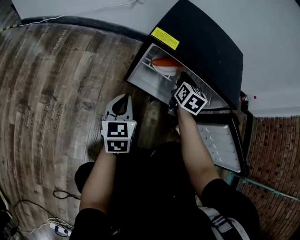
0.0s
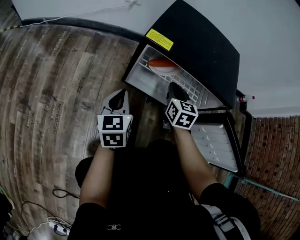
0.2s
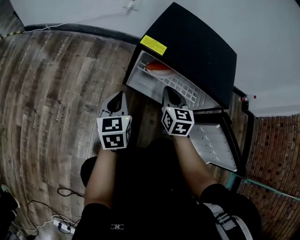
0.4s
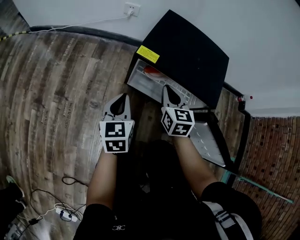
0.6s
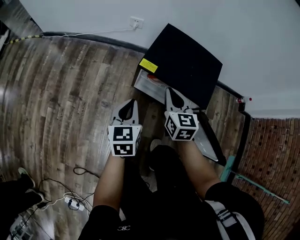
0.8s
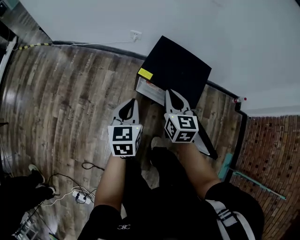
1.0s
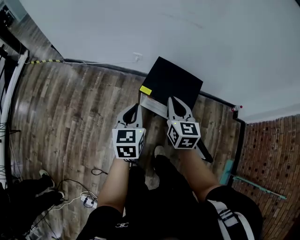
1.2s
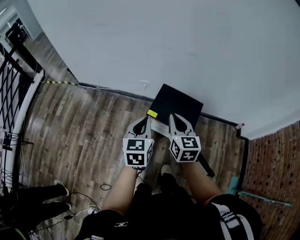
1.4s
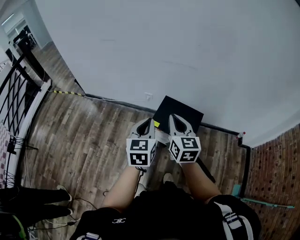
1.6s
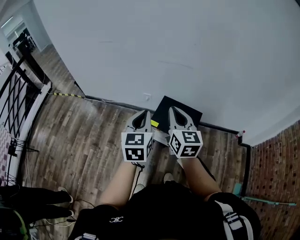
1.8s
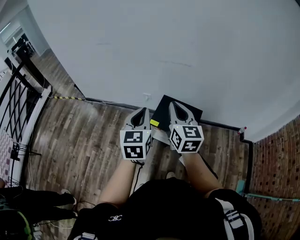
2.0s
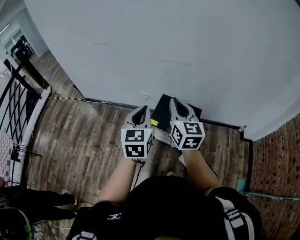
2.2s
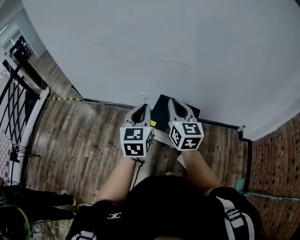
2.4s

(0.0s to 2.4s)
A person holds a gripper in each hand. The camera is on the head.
0.0s - 1.2s: The left gripper is displaced upward by roughly 60 cm.
1.2s - 2.4s: The left gripper moves upward, roughly 20 cm.

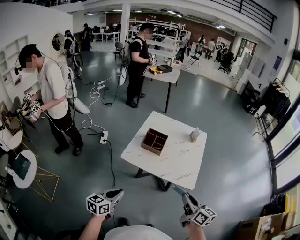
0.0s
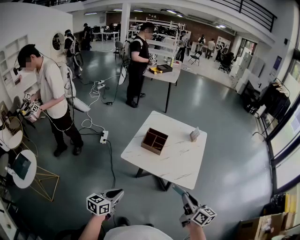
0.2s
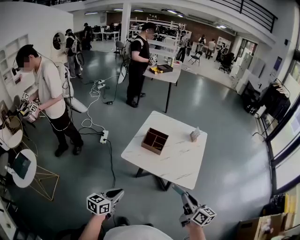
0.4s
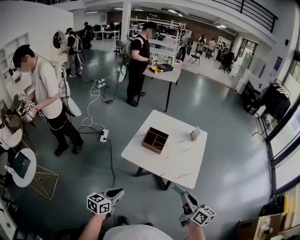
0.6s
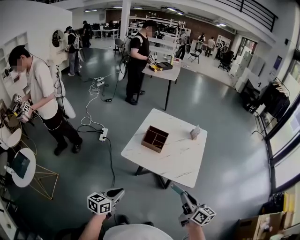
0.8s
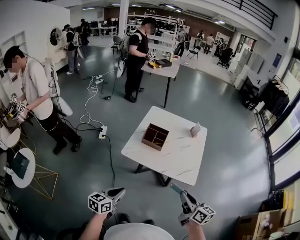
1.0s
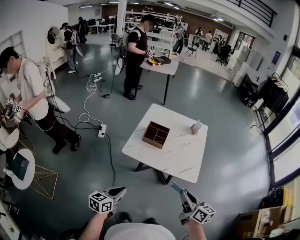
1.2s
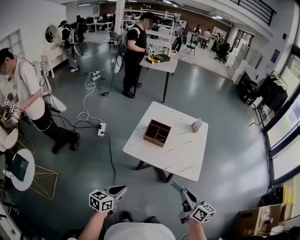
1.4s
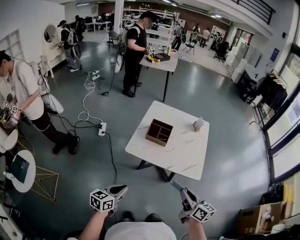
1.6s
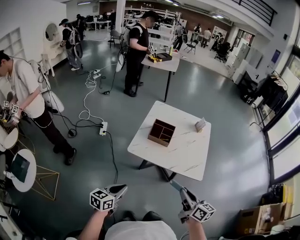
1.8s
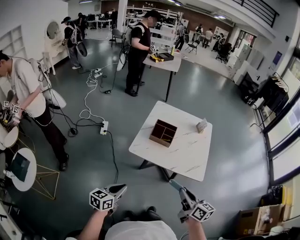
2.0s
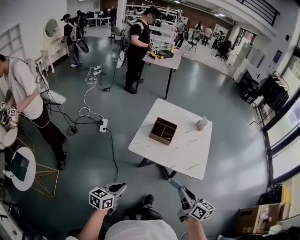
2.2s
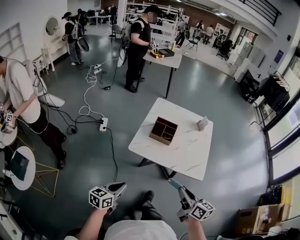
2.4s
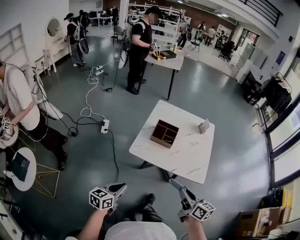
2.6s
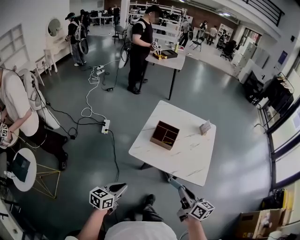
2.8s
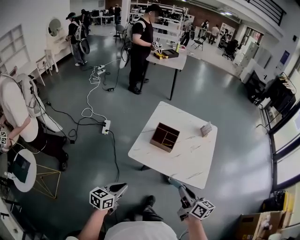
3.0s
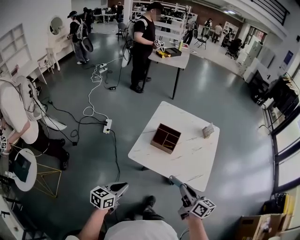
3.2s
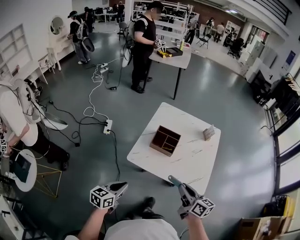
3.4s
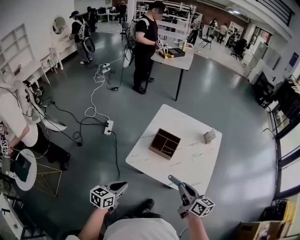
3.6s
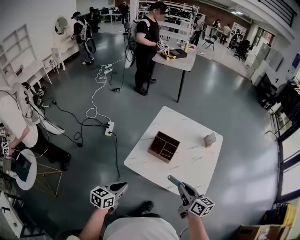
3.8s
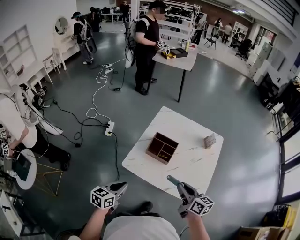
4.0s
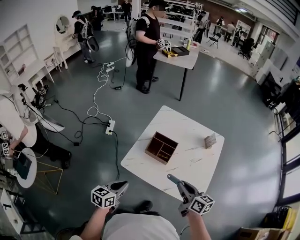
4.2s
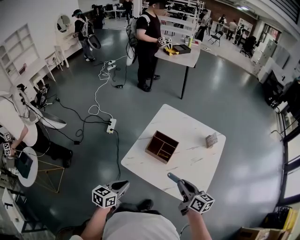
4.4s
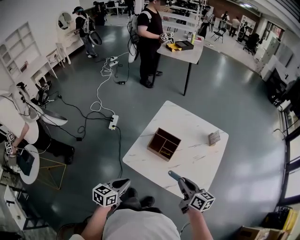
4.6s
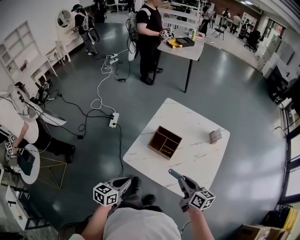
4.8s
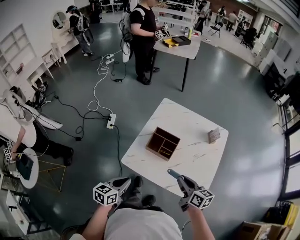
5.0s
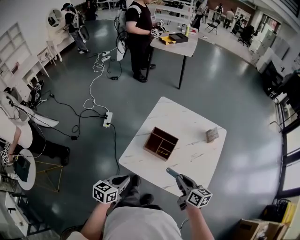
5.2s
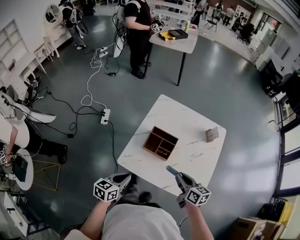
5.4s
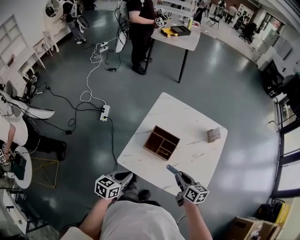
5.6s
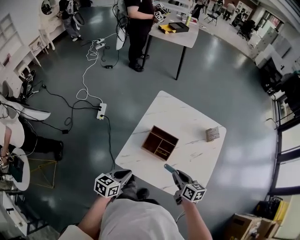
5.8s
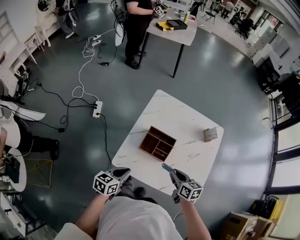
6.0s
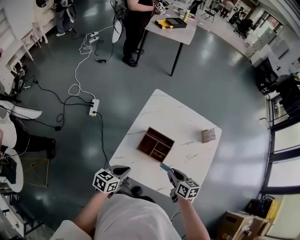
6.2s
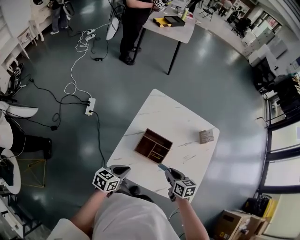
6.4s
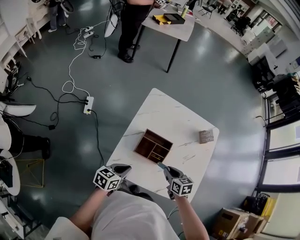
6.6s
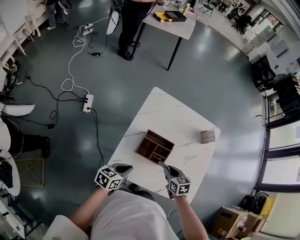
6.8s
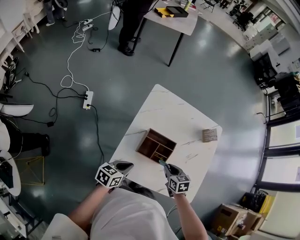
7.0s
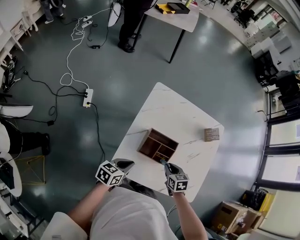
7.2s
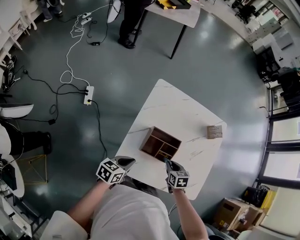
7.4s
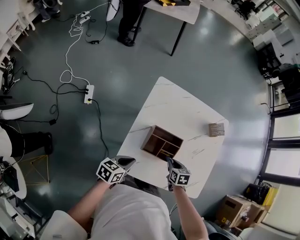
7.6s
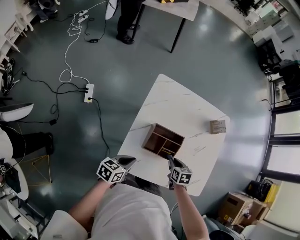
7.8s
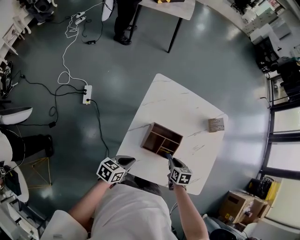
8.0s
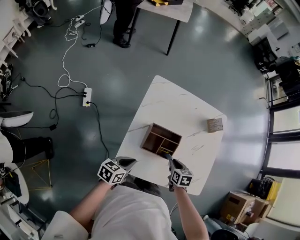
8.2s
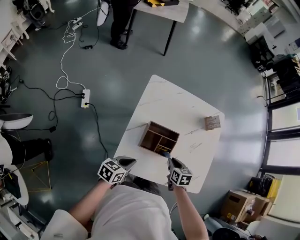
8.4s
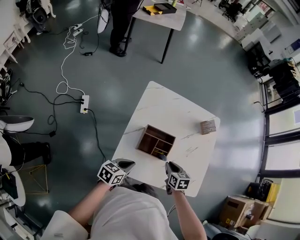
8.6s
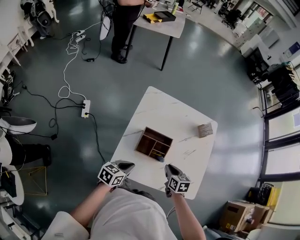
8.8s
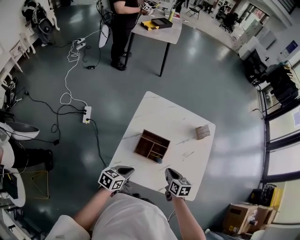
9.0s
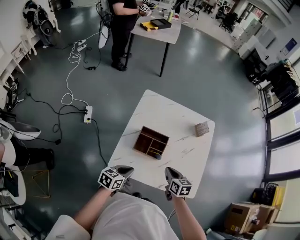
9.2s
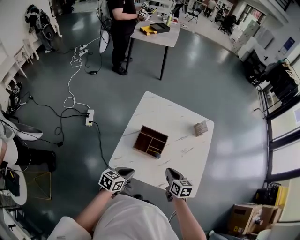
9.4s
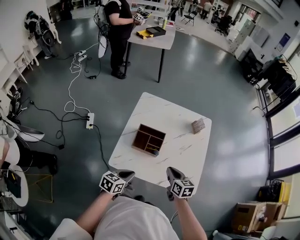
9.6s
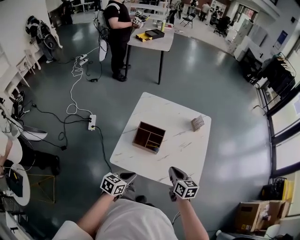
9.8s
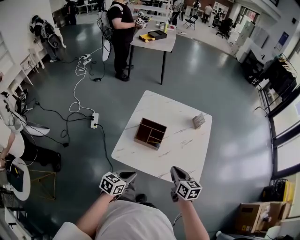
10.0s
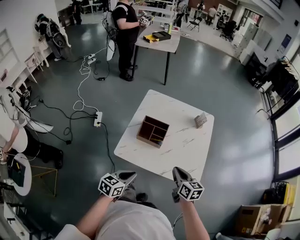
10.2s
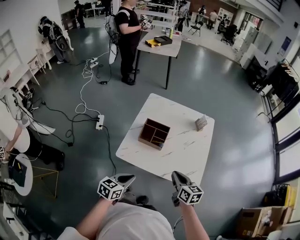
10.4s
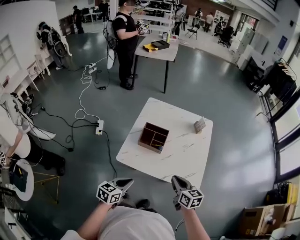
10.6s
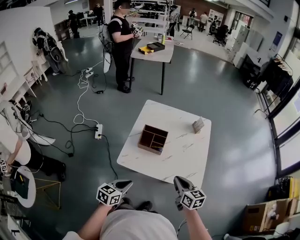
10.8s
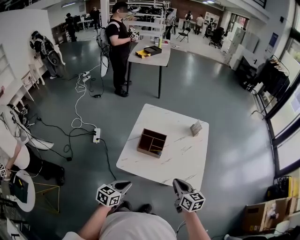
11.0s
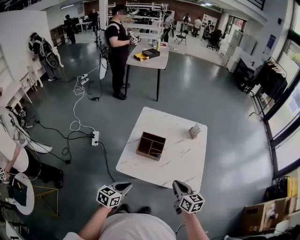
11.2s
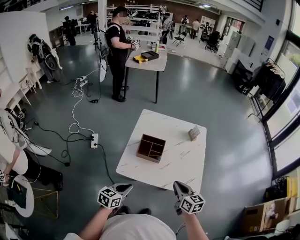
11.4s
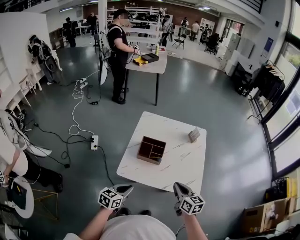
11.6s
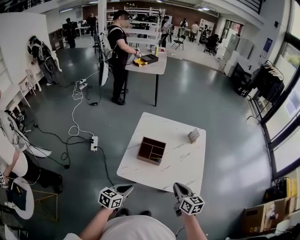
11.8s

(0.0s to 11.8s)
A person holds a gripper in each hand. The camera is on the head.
0.0s - 1.4s: The right gripper shifts approximately 5 cm to the left.
1.4s - 3.0s: The right gripper is displaced forward and to the left by some 10 cm, while the left gripper shifts approximately 10 cm forward.
3.0s - 4.4s: The left gripper is displaced forward and to the right by some 15 cm. The right gripper goes about 20 cm forward.
4.4s - 6.0s: The two grippers go approximately 15 cm forward and downward.
6.0s - 7.4s: The right gripper heads downward and forward, covering approximately 15 cm, and swivels roughly 30 degrees. Meanwhile the left gripper heads forward and downward, covering about 10 cm.
7.4s - 8.8s: The right gripper goes roughly 5 cm upward; the left gripper moves approximately 5 cm.
8.8s - 10.4s: The left gripper is displaced backward, to the right and upward by about 25 cm. The right gripper shifts roughly 25 cm backward, upward and to the right, and turns by some 20 degrees.
10.4s - 11.8s: The left gripper ends up some 5 cm from where it was.

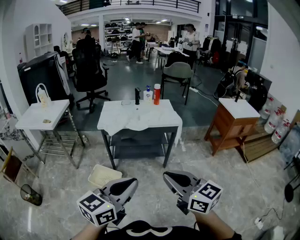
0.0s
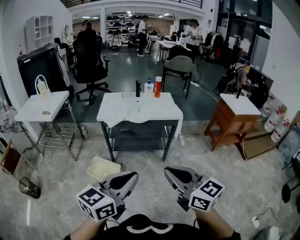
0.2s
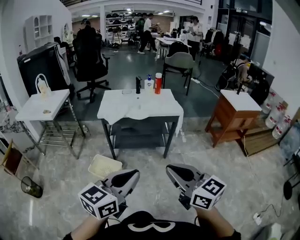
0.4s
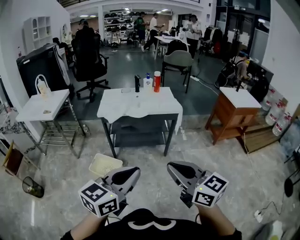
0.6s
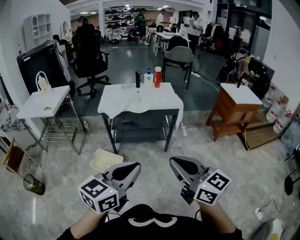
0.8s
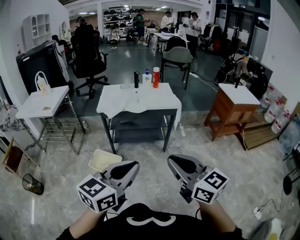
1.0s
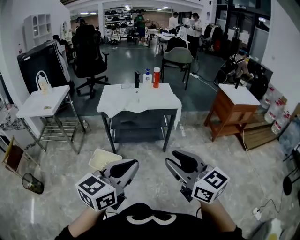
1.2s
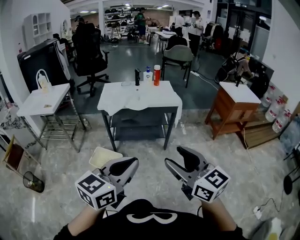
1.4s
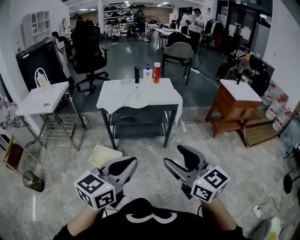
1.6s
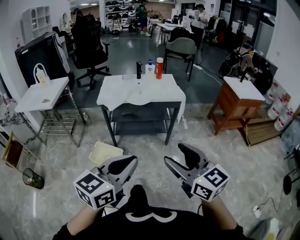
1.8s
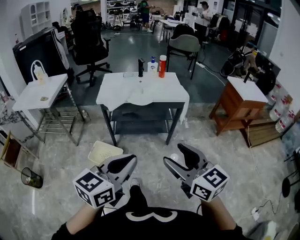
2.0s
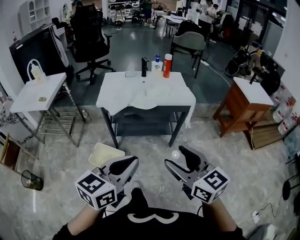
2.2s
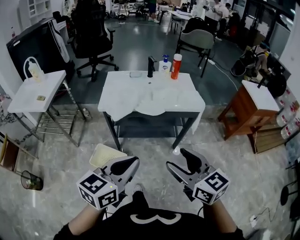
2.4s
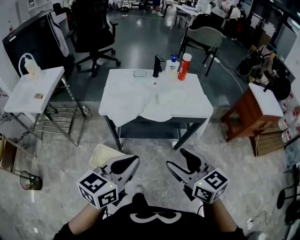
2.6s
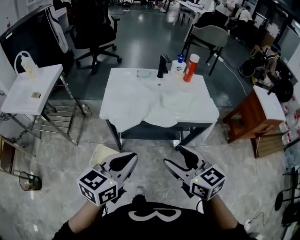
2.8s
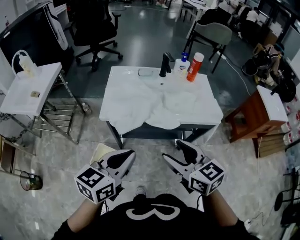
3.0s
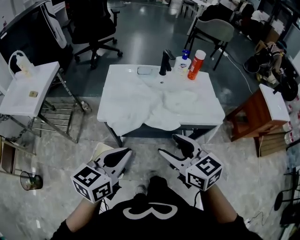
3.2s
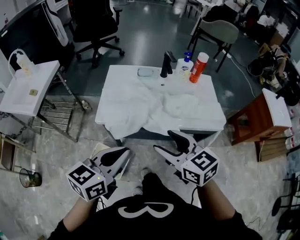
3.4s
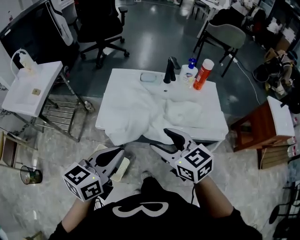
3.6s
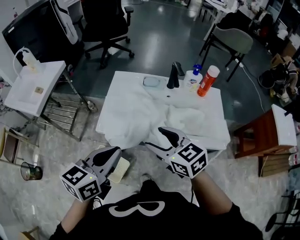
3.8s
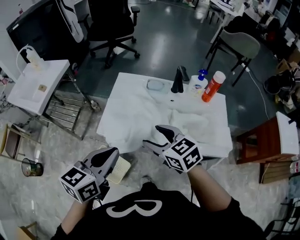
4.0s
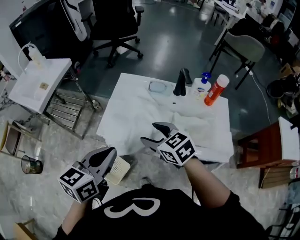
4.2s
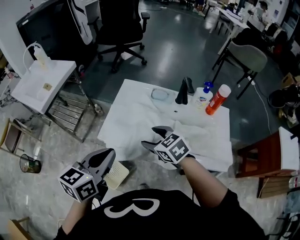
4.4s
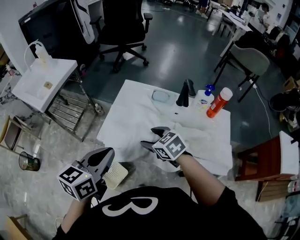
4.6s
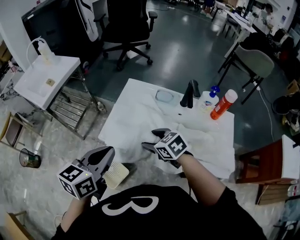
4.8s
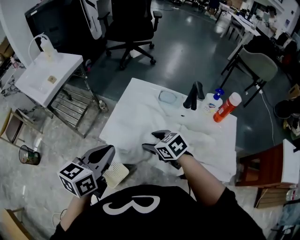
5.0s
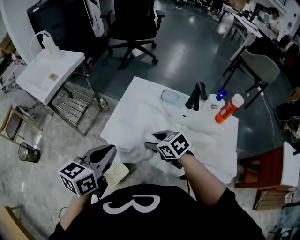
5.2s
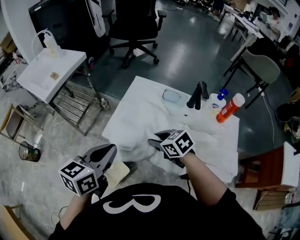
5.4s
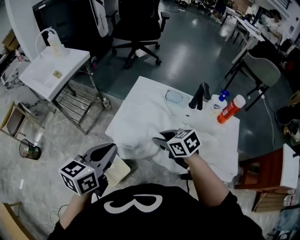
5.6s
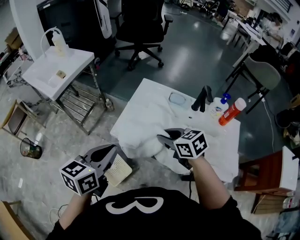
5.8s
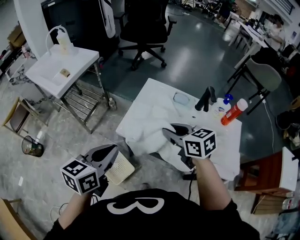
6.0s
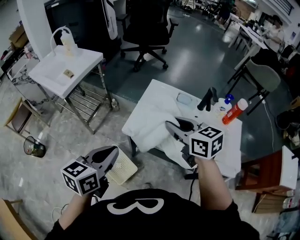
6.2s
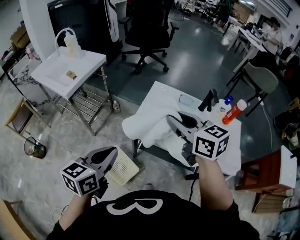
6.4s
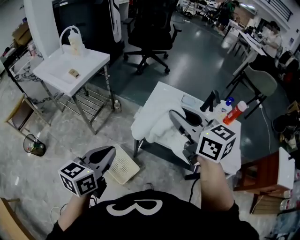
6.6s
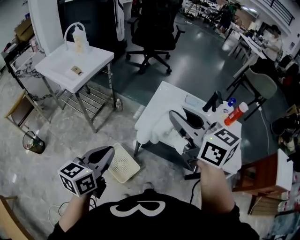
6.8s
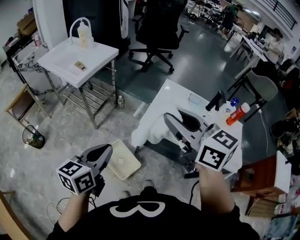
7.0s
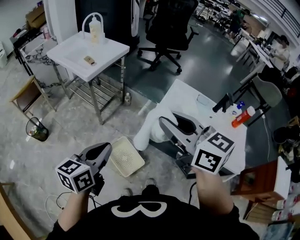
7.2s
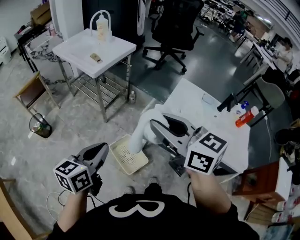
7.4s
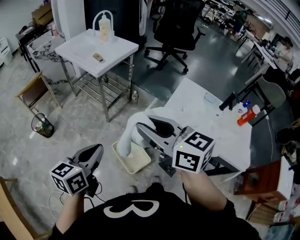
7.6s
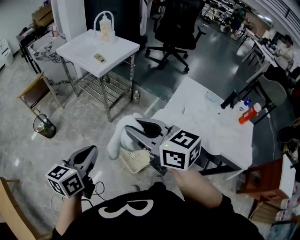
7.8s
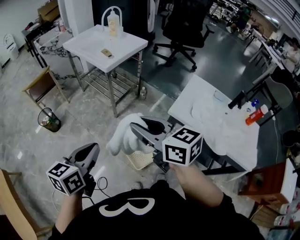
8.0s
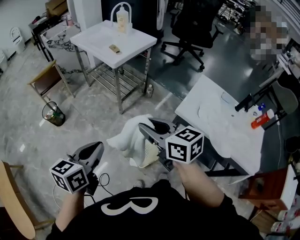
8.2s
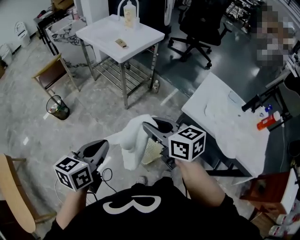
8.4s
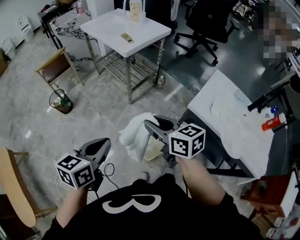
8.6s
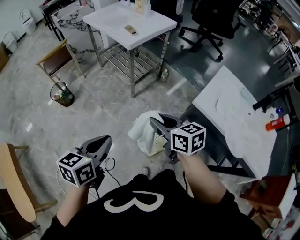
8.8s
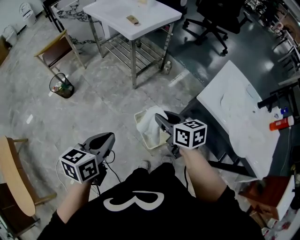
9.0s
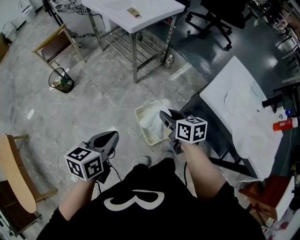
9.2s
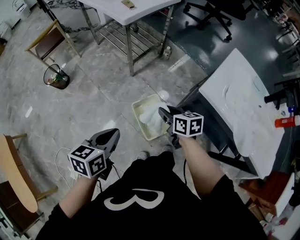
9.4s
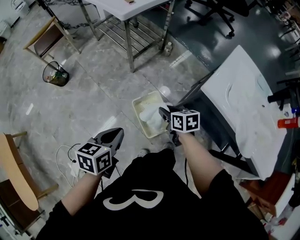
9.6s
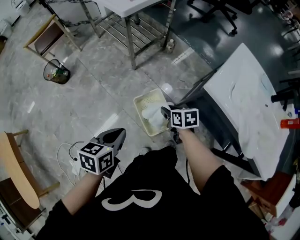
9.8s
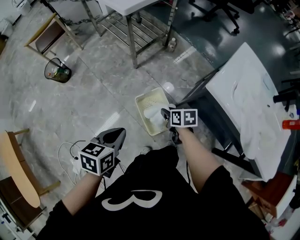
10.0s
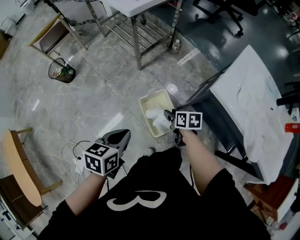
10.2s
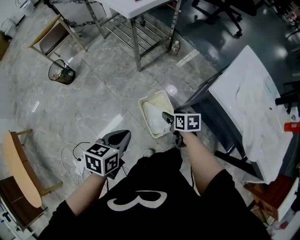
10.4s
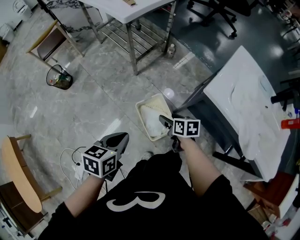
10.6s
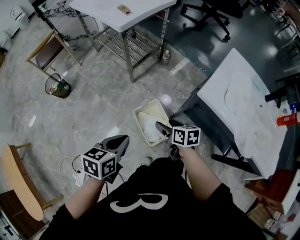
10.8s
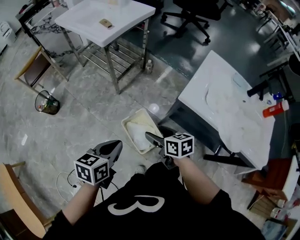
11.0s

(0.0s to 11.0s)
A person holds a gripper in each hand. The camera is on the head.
0.0s - 1.6s: The right gripper opens its fingers.
1.6s - 3.2s: Both grippers are carried forward, about 50 cm. The right gripper changes its angle by approximately 20 degrees.
3.2s - 4.8s: The left gripper moves approximately 15 cm, and turns by approximately 30 degrees. Meanwhile the right gripper changes place by some 30 cm, and swivels roughly 40 degrees.
4.8s - 6.2s: The right gripper is displaced upward by about 20 cm, changes its angle by approximately 20 degrees, and closes. Meanwhile the left gripper travels to the left by about 10 cm.
6.2s - 7.8s: The grippers both shift to the left by approximately 35 cm. The right gripper turns by some 20 degrees.
7.8s - 9.4s: The right gripper is displaced downward by roughly 35 cm, and turns by roughly 30 degrees; the left gripper is displaced downward by roughly 20 cm.
9.4s - 11.0s: The right gripper travels backward by about 5 cm, travels downward and back again, approximately 10 cm each way, and opens up. Meanwhile the left gripper shifts about 5 cm to the right.
